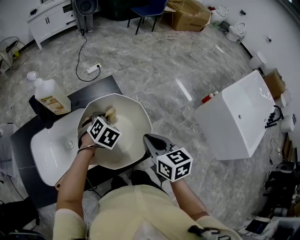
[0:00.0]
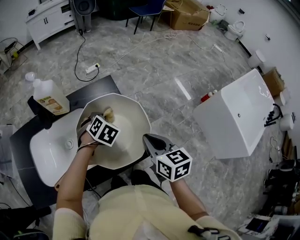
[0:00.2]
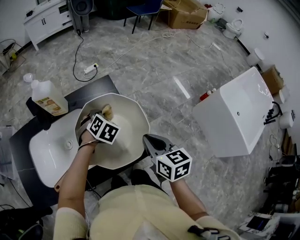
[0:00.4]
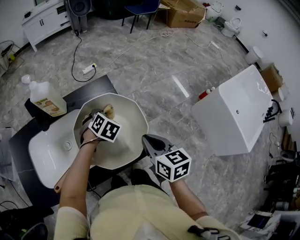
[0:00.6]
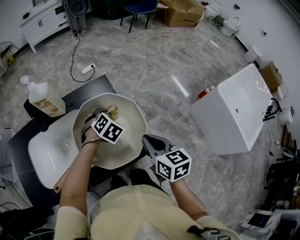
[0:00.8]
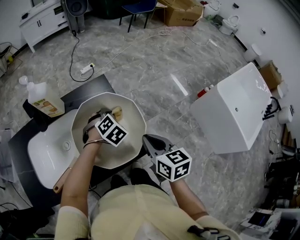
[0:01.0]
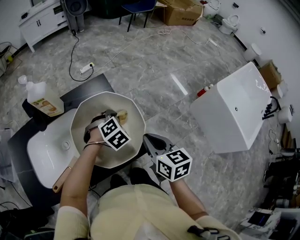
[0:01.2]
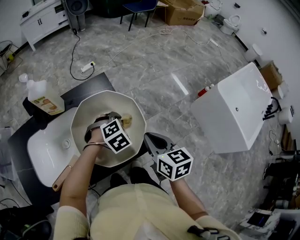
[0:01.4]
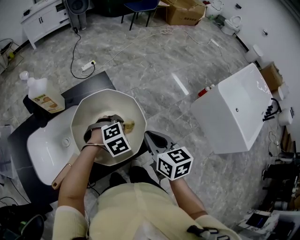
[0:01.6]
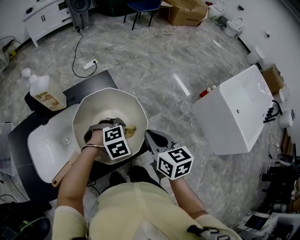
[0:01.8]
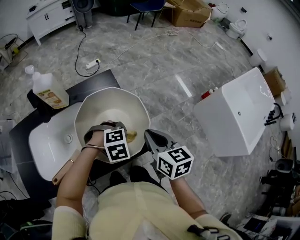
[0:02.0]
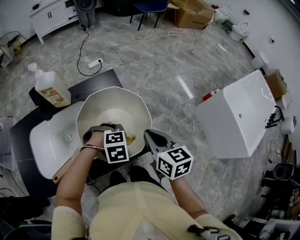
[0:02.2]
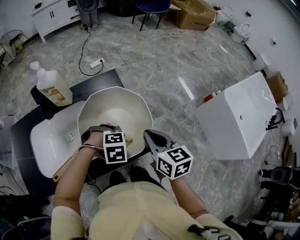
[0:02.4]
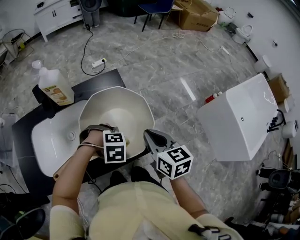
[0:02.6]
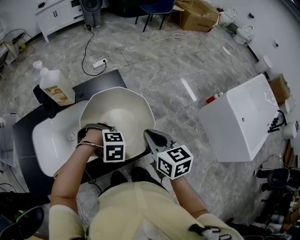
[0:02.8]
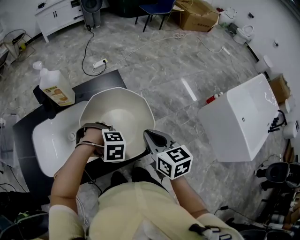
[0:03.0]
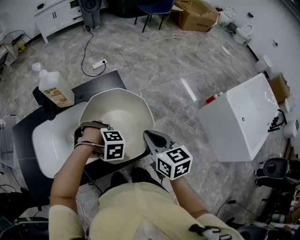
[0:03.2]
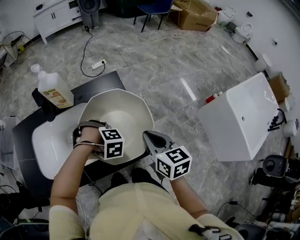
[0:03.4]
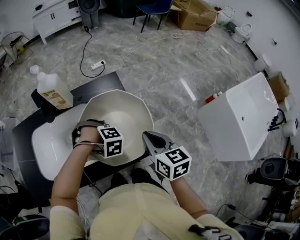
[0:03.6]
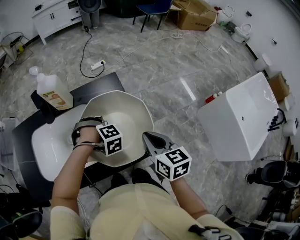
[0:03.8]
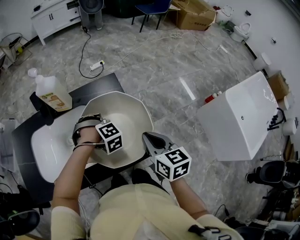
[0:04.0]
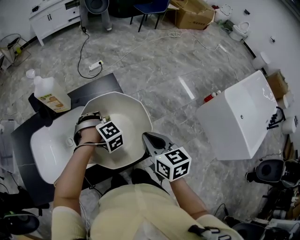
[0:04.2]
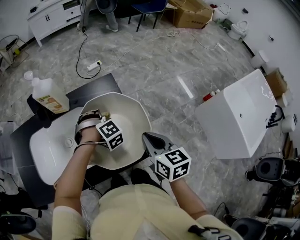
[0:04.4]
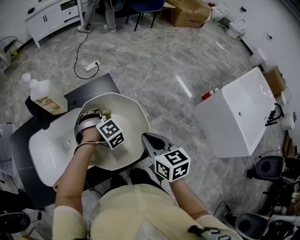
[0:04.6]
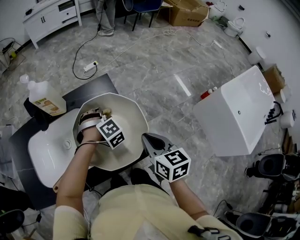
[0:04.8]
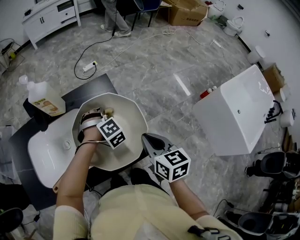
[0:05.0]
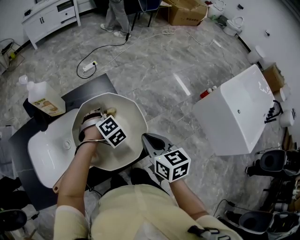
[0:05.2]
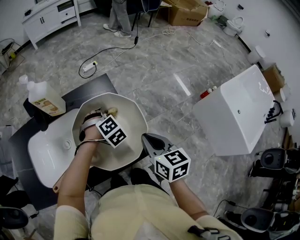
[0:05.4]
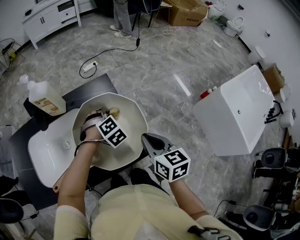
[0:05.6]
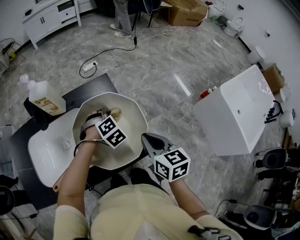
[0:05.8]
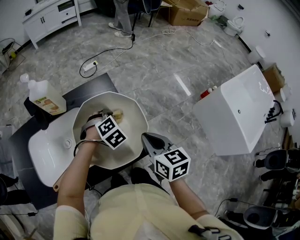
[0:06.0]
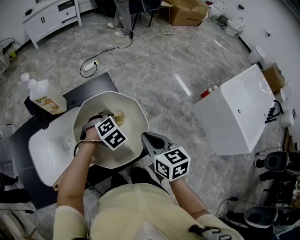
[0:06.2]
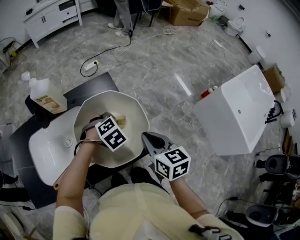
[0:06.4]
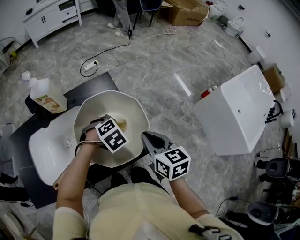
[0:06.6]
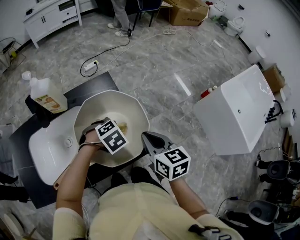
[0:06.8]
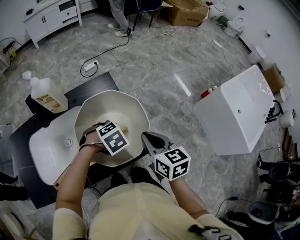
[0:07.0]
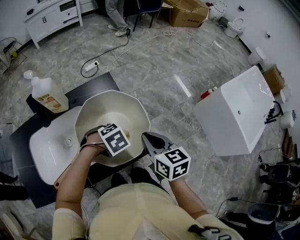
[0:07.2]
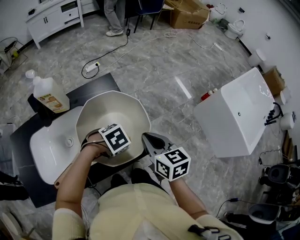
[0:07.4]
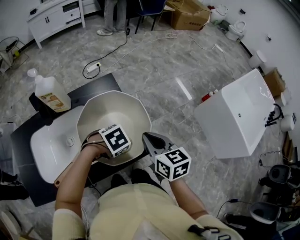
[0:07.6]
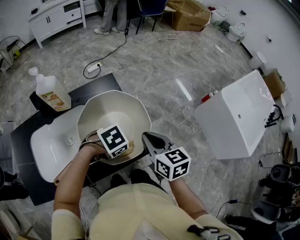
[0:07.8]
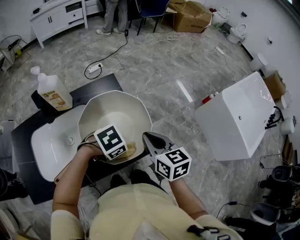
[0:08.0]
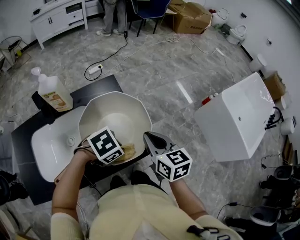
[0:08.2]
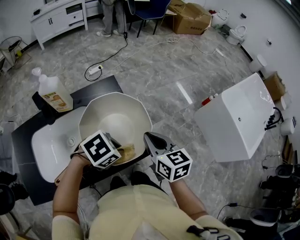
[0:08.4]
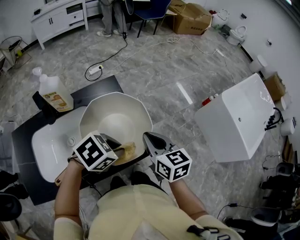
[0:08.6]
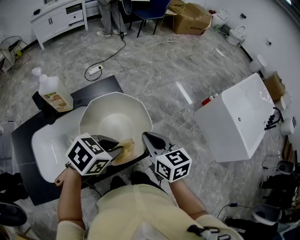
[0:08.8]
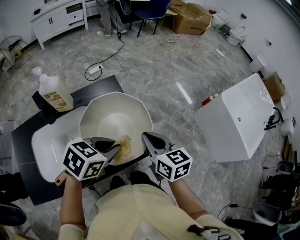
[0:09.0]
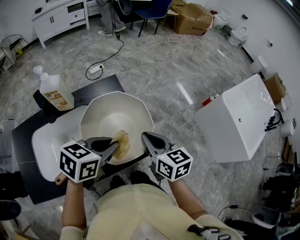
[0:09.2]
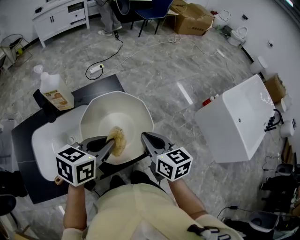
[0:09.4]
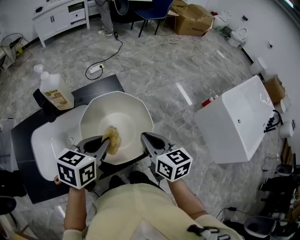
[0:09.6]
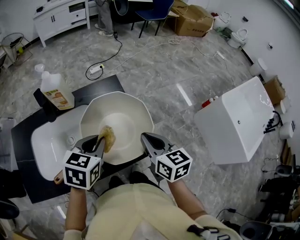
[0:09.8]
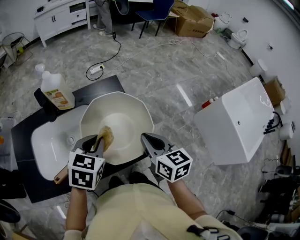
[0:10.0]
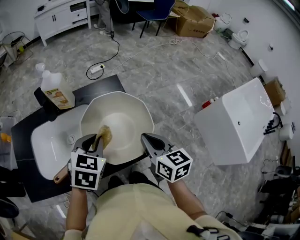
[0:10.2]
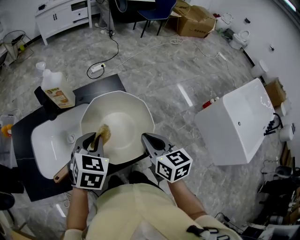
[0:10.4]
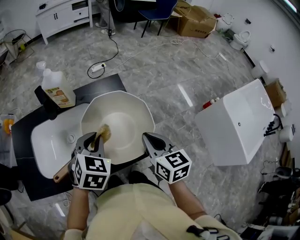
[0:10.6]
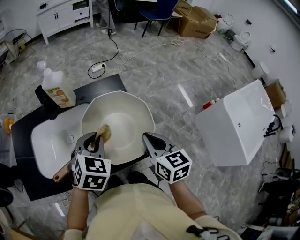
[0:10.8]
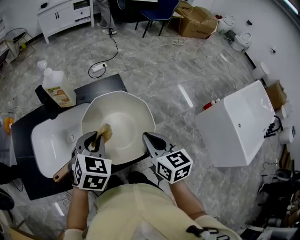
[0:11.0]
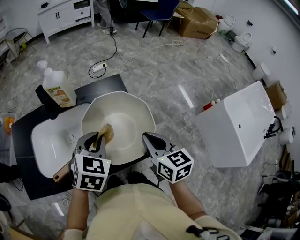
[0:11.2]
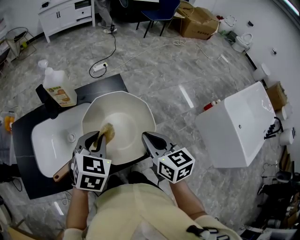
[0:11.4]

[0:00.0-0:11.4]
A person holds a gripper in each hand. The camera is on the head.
0:00.0 to 0:01.4: The left gripper is displaced to the right and backward by about 10 cm, and swivels some 30 degrees.
0:01.4 to 0:02.8: The left gripper changes place by approximately 15 cm, and rotates approximately 30 degrees.
0:02.8 to 0:04.2: The left gripper changes place by roughly 15 cm, and changes its angle by approximately 40 degrees.
0:04.2 to 0:05.6: The left gripper shifts about 5 cm to the right, and turns by about 20 degrees.
0:05.6 to 0:07.2: The left gripper shifts by approximately 15 cm, and changes its angle by some 30 degrees.
0:07.2 to 0:08.6: The left gripper moves upward, some 10 cm, and swivels roughly 20 degrees.
0:08.6 to 0:10.0: The left gripper shifts by roughly 10 cm, and turns by about 50 degrees.
0:10.0 to 0:11.4: The grippers make only small movements.

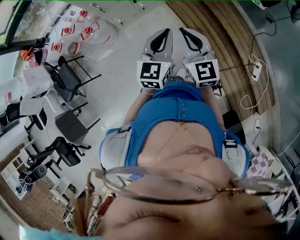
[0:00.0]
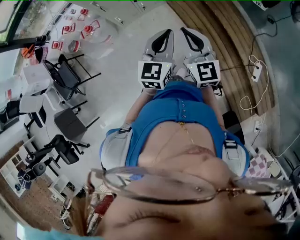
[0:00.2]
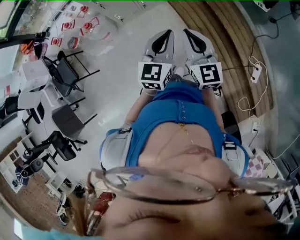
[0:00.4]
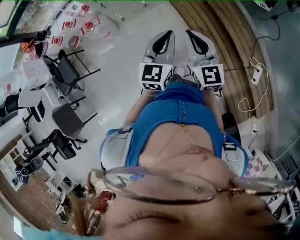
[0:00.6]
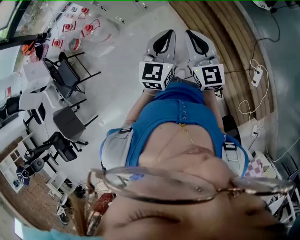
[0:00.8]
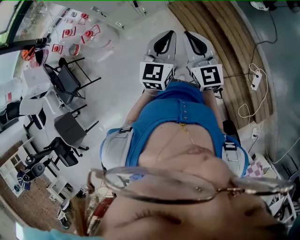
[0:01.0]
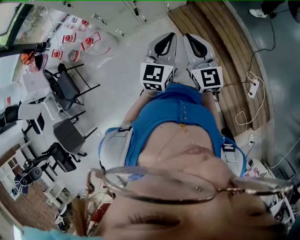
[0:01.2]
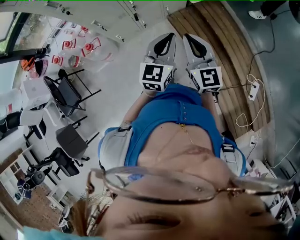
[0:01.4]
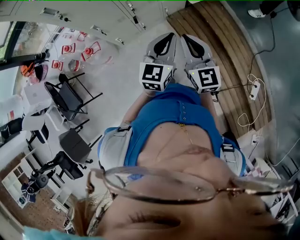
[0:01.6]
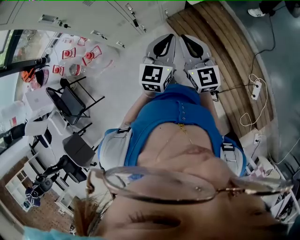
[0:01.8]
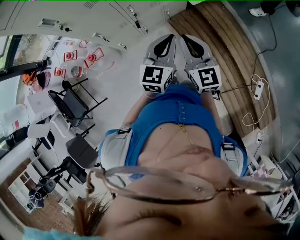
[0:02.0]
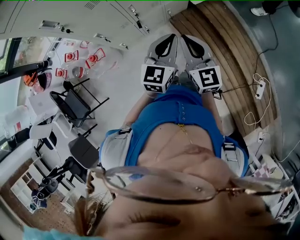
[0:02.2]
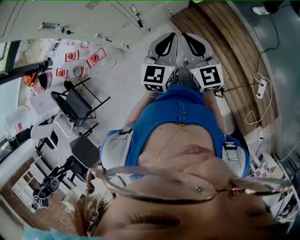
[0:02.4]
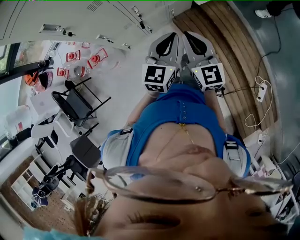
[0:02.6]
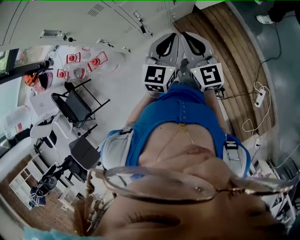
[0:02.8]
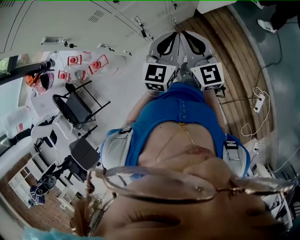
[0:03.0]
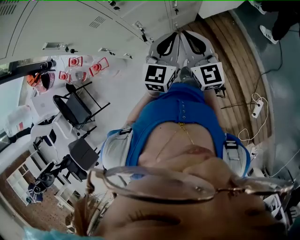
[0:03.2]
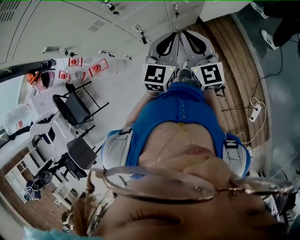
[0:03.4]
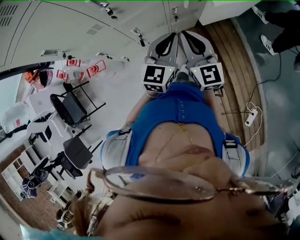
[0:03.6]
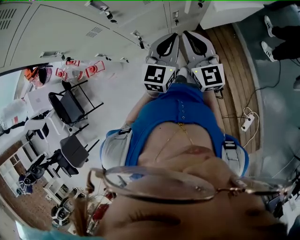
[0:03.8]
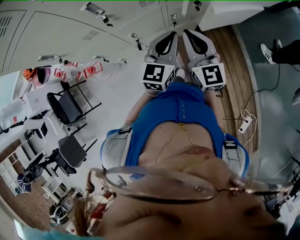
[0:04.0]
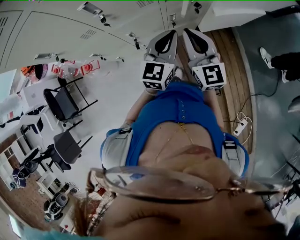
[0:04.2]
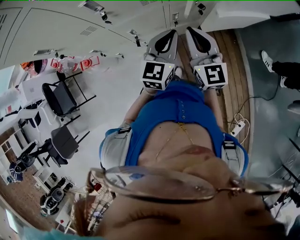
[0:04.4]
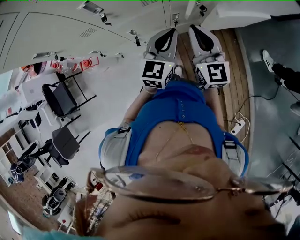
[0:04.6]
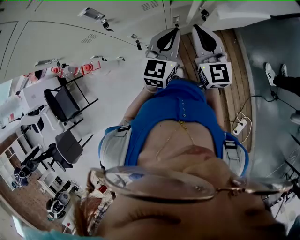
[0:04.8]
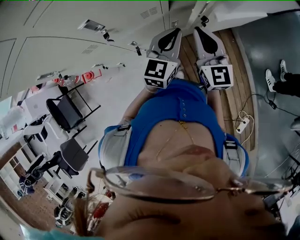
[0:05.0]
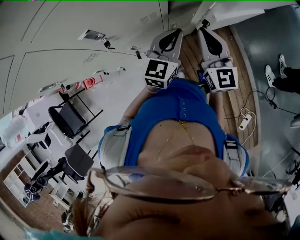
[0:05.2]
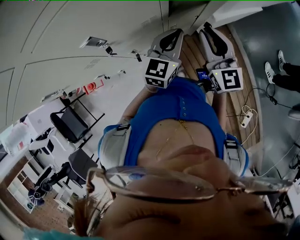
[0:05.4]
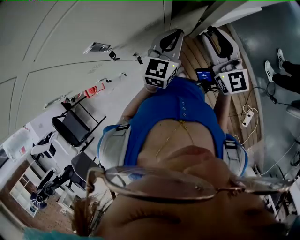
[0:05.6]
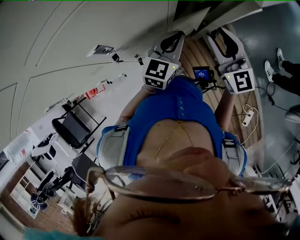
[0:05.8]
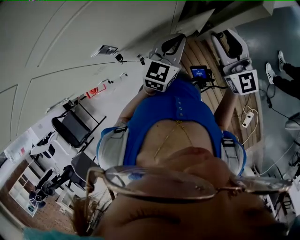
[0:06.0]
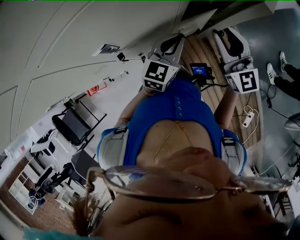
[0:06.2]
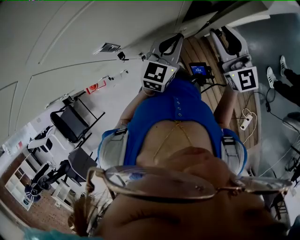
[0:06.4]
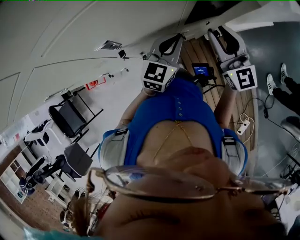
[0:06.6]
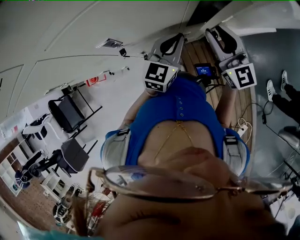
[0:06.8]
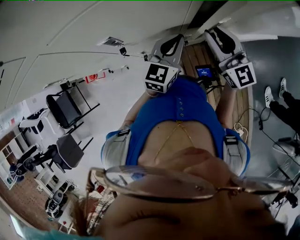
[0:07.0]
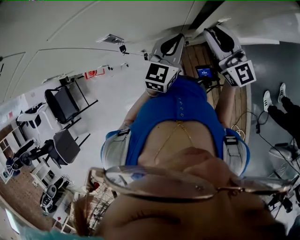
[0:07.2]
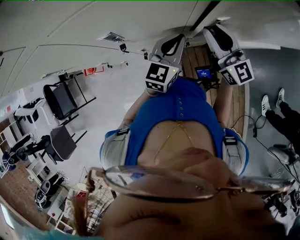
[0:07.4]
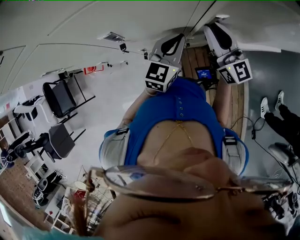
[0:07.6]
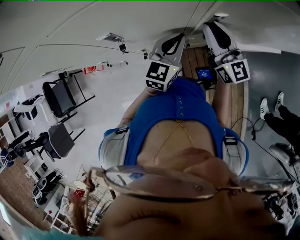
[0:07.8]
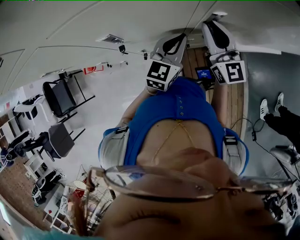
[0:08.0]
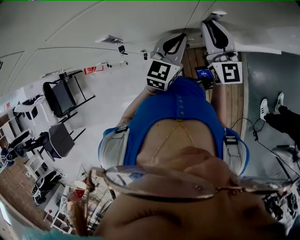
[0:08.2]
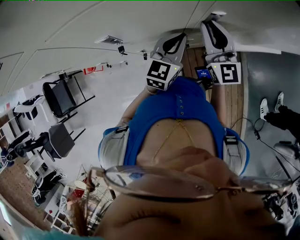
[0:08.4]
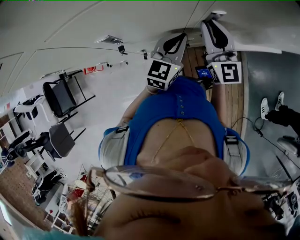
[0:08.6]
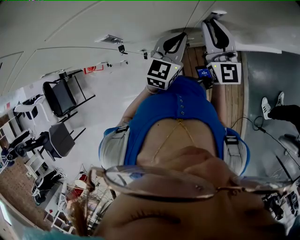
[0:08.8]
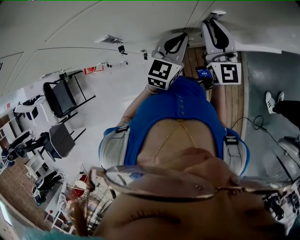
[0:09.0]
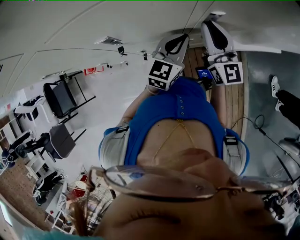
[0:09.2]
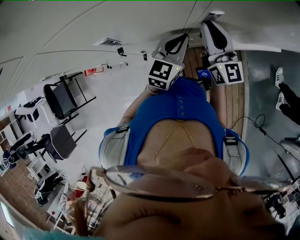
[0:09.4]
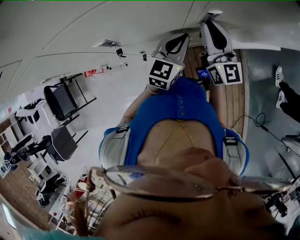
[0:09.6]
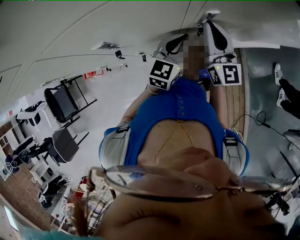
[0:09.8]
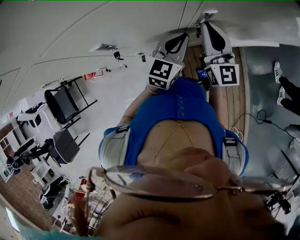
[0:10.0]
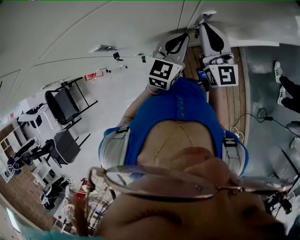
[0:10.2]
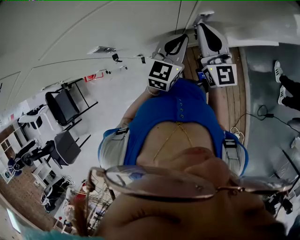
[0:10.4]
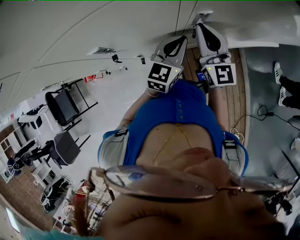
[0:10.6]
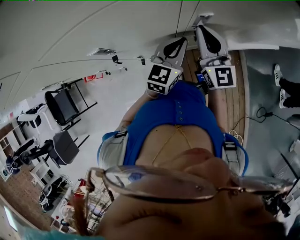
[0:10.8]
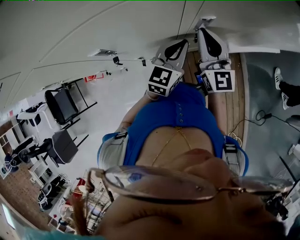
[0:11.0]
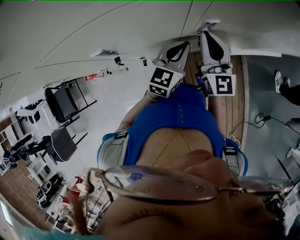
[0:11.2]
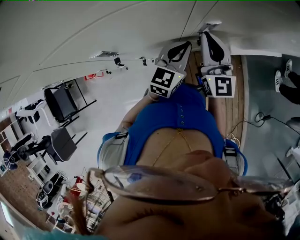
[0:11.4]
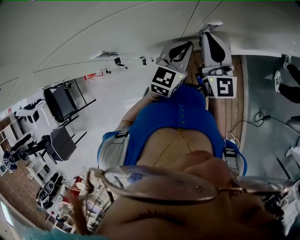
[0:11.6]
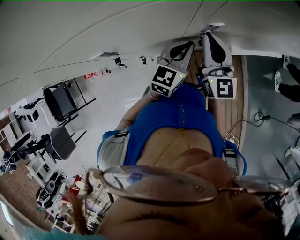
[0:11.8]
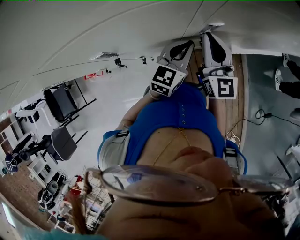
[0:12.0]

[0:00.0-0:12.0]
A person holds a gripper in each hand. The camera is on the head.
0:00.0 to 0:01.6: The two grippers go some 20 cm forward.
0:01.6 to 0:03.0: Both grippers move forward, about 20 cm.
0:03.0 to 0:04.4: The left gripper shifts about 15 cm forward, while the right gripper is displaced forward and to the right by about 20 cm.
0:04.4 to 0:06.0: Both grippers travel together forward, some 10 cm. The right gripper opens up, while the left gripper swivels some 20 degrees.
0:06.0 to 0:07.6: The right gripper travels forward by about 10 cm, and turns by approximately 30 degrees; the left gripper shifts by some 5 cm, and changes its angle by some 20 degrees.
0:07.6 to 0:10.4: The grippers move only a little.
0:10.4 to 0:12.0: The two grippers keep their place.

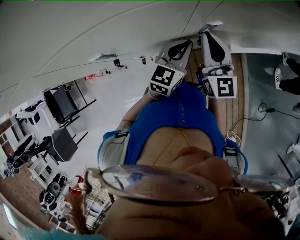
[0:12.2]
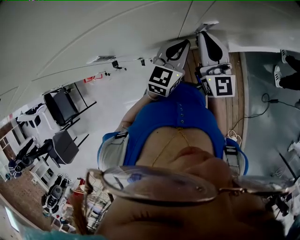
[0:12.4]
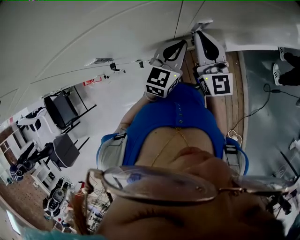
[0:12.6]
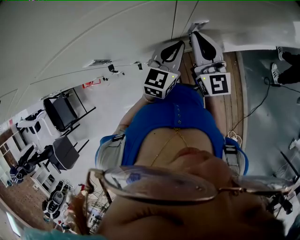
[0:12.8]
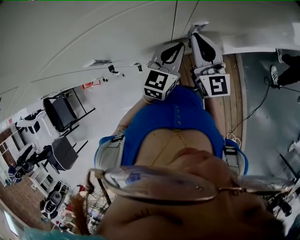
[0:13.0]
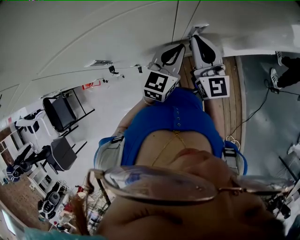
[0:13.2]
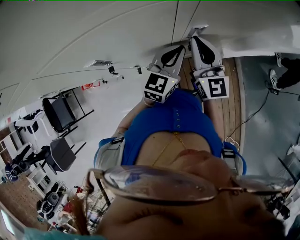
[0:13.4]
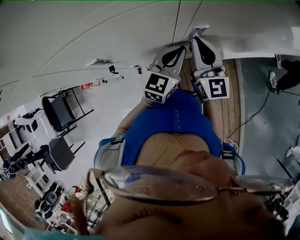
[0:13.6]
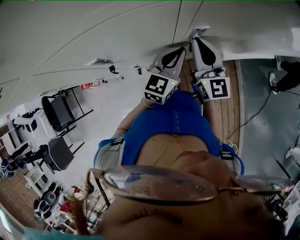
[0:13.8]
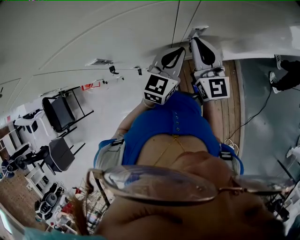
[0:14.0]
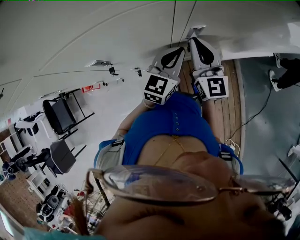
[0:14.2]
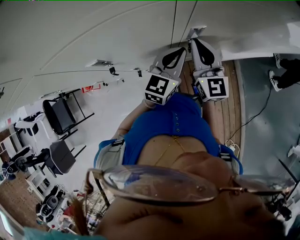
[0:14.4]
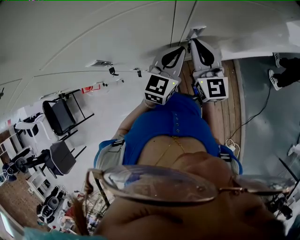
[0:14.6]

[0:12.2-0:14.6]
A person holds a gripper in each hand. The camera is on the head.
0:12.2 to 0:13.4: The grippers stay close to where they were, moving slightly.
0:13.4 to 0:14.6: Both grippers stay put.
